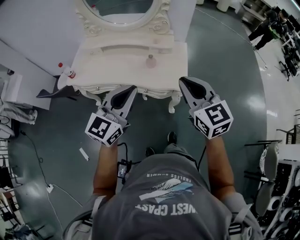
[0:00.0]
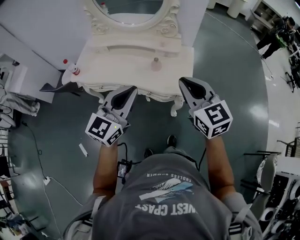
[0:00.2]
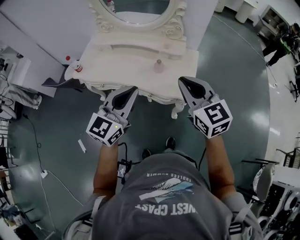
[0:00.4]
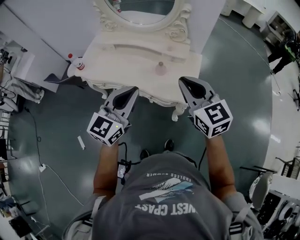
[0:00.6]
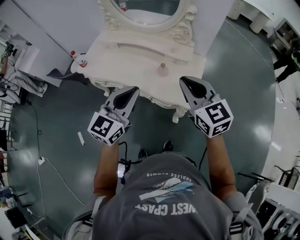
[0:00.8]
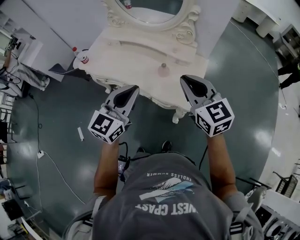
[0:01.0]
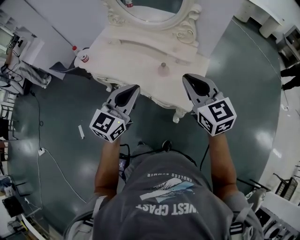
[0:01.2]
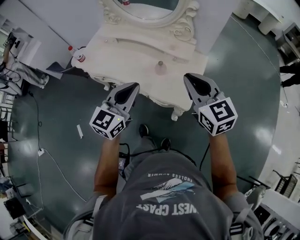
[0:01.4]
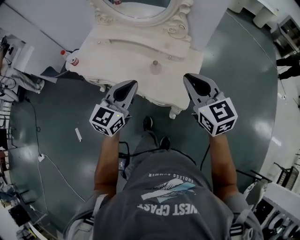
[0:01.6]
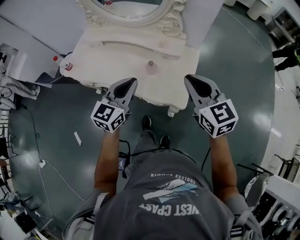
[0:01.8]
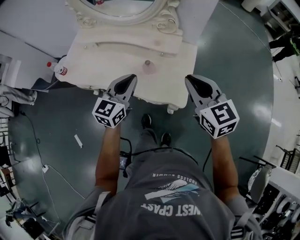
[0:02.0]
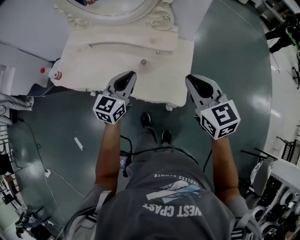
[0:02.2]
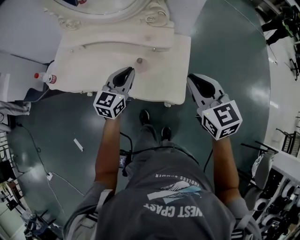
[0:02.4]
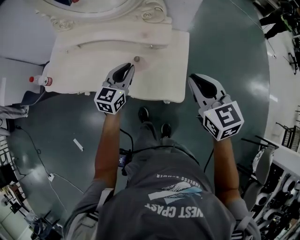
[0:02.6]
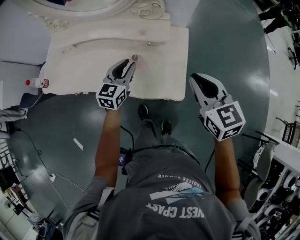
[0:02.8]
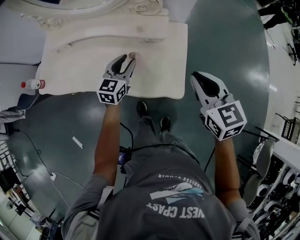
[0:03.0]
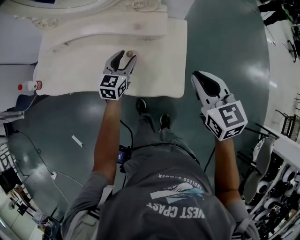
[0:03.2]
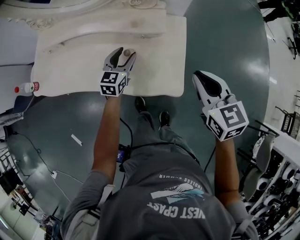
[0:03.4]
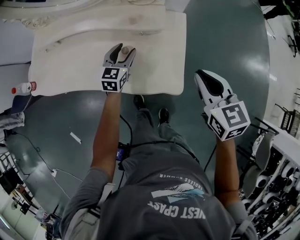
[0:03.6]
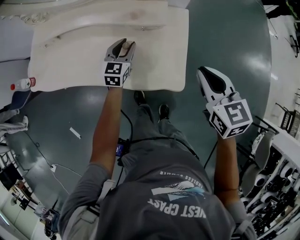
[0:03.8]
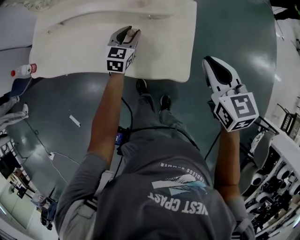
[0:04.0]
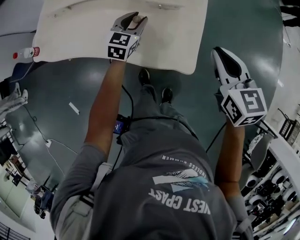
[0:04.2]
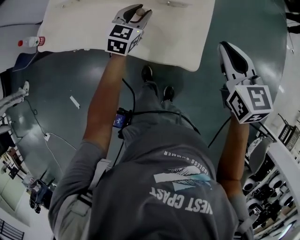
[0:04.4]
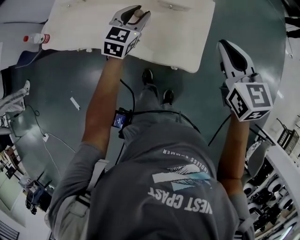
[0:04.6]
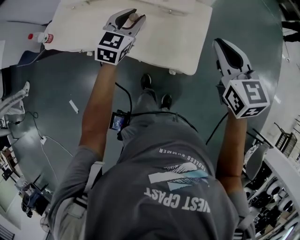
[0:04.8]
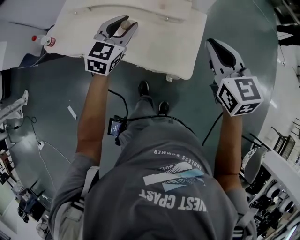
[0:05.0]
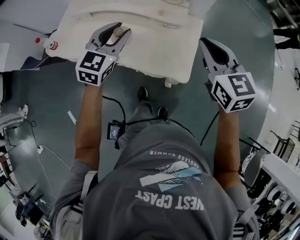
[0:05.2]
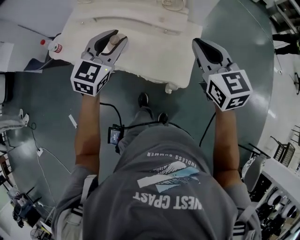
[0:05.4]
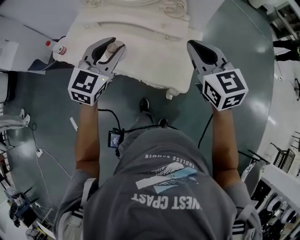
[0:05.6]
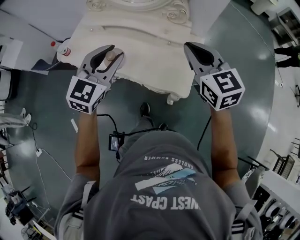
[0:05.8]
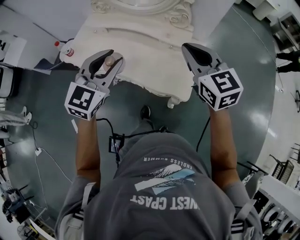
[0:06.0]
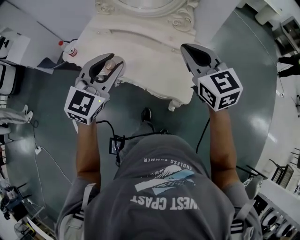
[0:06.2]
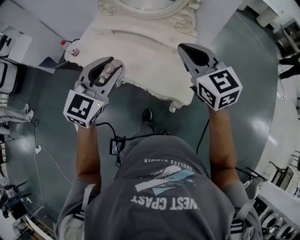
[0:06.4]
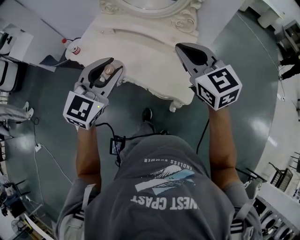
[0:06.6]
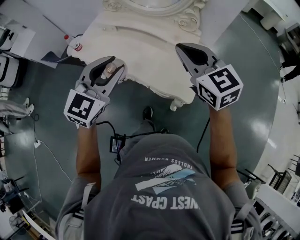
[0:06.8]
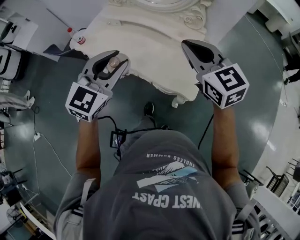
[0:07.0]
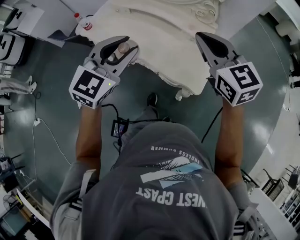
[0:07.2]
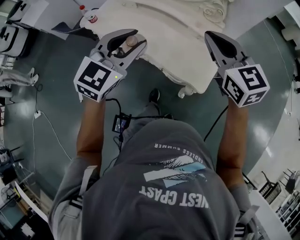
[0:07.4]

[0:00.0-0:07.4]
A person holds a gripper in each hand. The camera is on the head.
0:00.0 to 0:01.4: The left gripper moves forward and downward, roughly 10 cm. Meanwhile the right gripper is displaced forward by about 15 cm.
0:01.4 to 0:03.0: The left gripper is displaced downward and forward by about 30 cm, and opens its fingers; the right gripper moves downward and to the right, approximately 15 cm, and changes its angle by some 30 degrees.
0:04.4 to 0:06.0: The right gripper heads upward and to the left, covering approximately 15 cm, and swivels some 30 degrees. The left gripper goes some 30 cm upward and backward.
0:06.0 to 0:07.4: The grippers make only small movements.

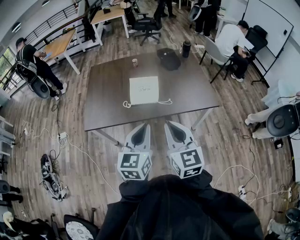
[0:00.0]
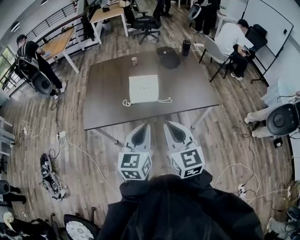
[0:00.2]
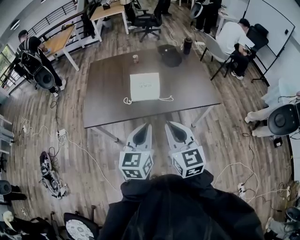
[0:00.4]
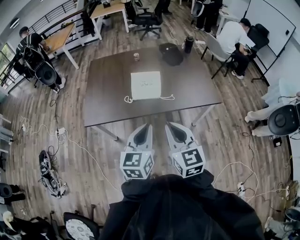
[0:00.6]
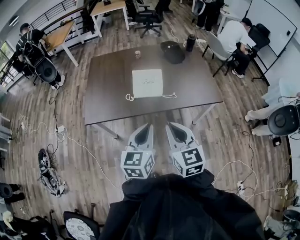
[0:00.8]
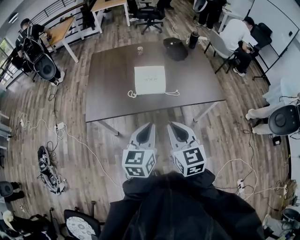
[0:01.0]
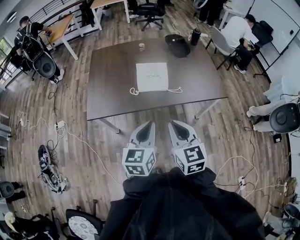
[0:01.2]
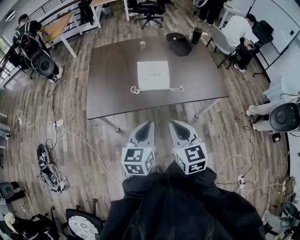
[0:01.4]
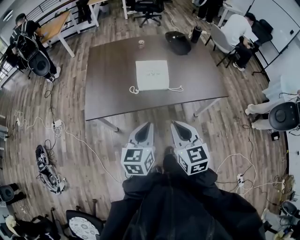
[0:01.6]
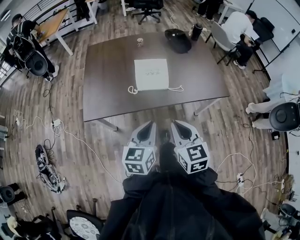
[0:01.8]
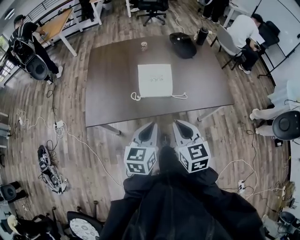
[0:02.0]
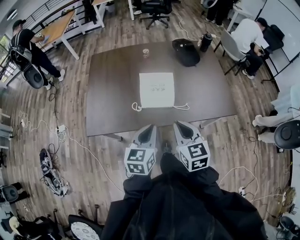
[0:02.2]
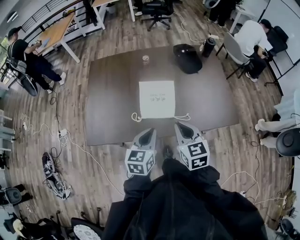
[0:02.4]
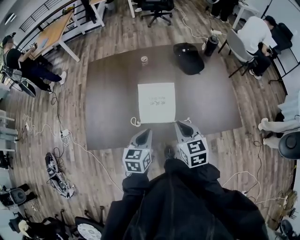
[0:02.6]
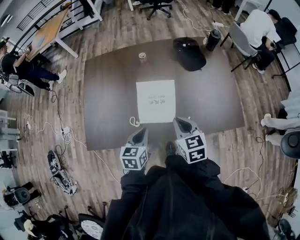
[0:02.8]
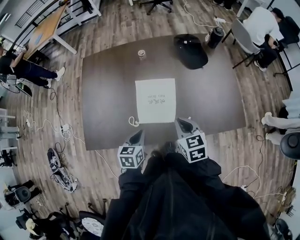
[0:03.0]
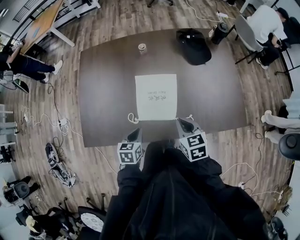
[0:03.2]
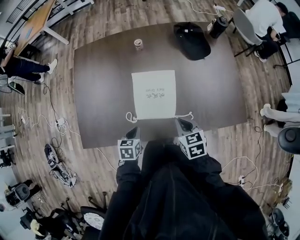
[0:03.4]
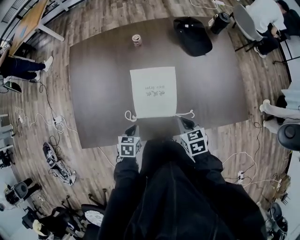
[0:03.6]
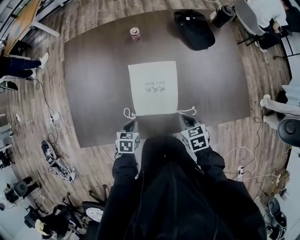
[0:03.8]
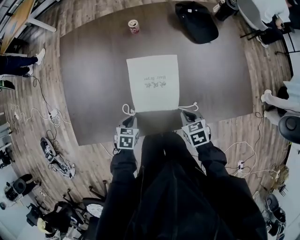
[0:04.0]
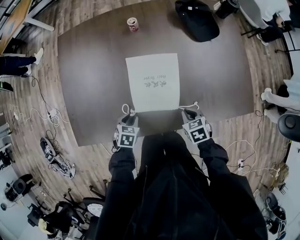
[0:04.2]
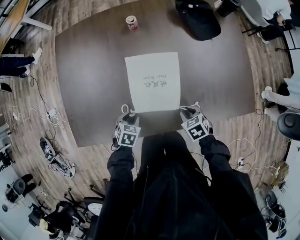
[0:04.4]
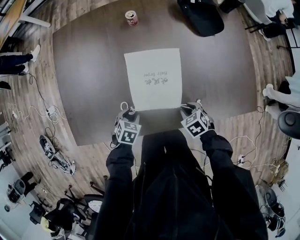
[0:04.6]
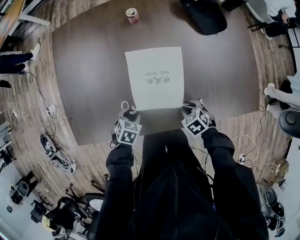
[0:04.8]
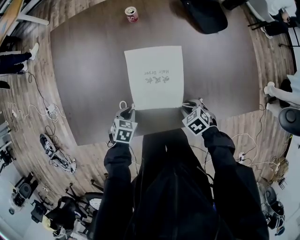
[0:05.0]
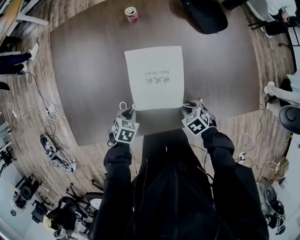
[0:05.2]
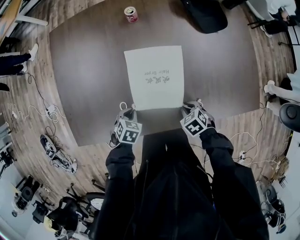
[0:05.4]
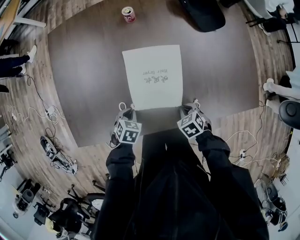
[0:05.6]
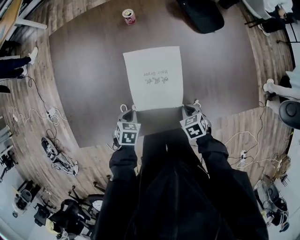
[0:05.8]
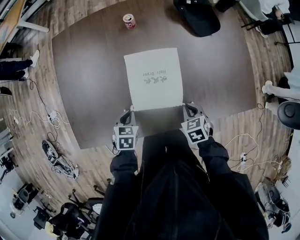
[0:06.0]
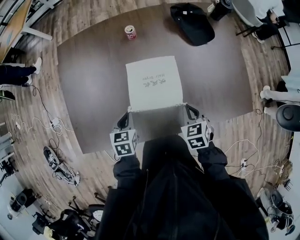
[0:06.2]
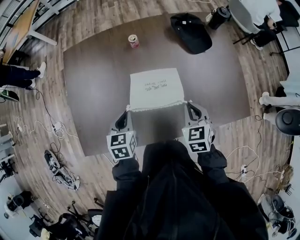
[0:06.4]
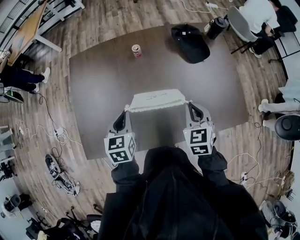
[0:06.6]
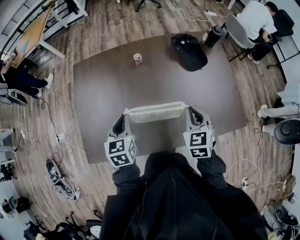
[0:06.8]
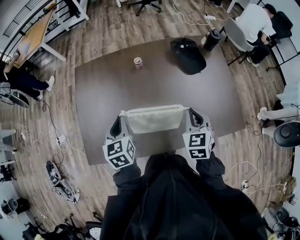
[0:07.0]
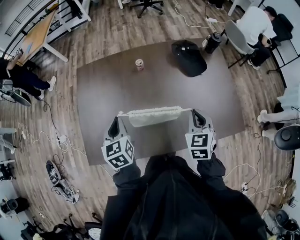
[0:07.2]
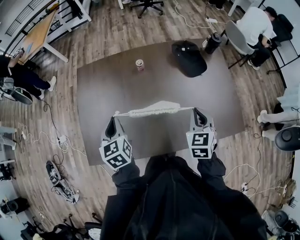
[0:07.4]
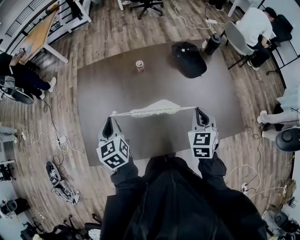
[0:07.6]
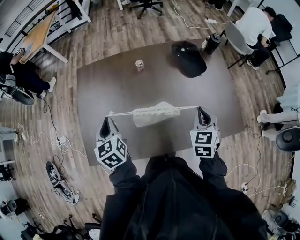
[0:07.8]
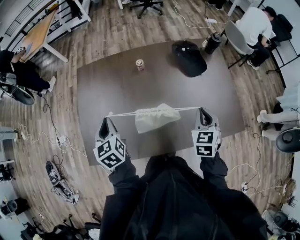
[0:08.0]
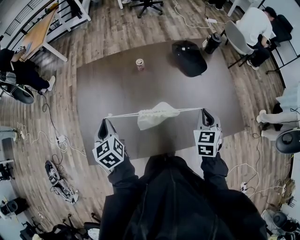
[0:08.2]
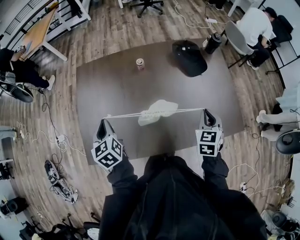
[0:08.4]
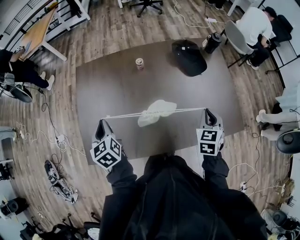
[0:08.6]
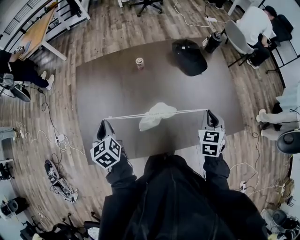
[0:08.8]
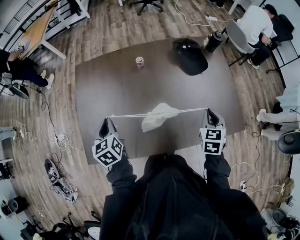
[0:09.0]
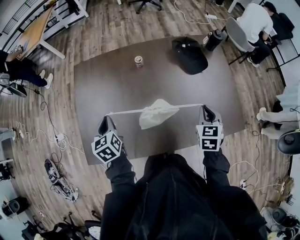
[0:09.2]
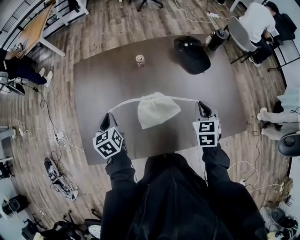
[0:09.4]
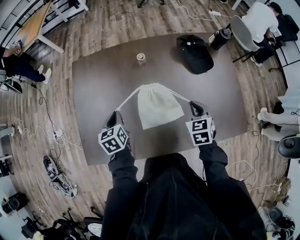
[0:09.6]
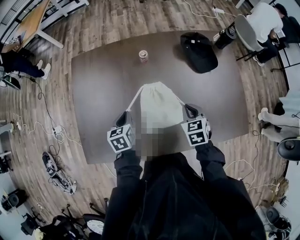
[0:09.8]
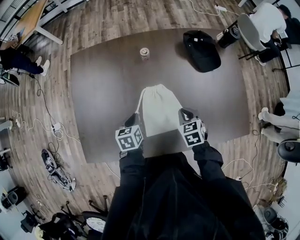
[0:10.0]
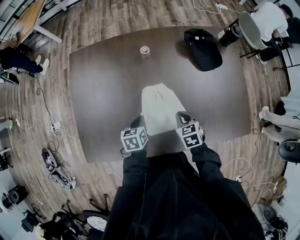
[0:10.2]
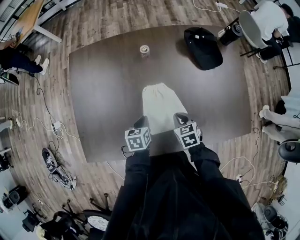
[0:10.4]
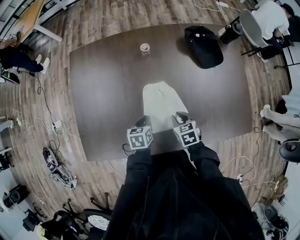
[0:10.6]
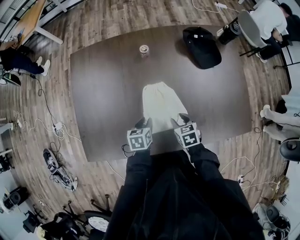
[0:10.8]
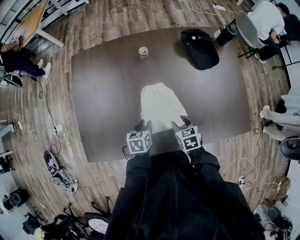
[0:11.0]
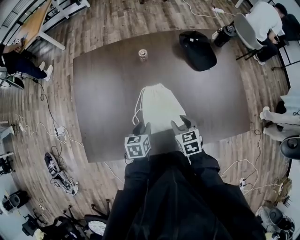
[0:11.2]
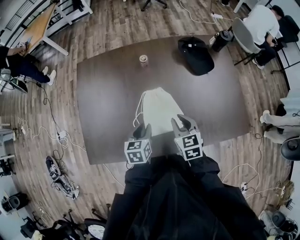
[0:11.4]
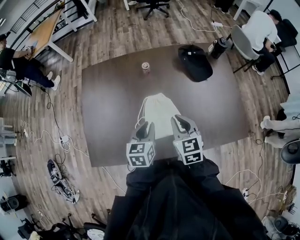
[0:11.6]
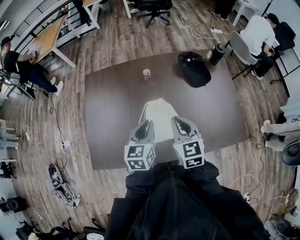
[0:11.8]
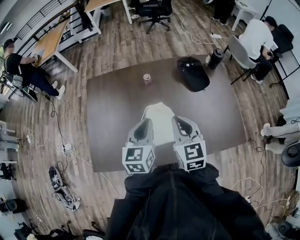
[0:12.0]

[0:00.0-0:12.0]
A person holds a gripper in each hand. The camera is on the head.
0:00.0 to 0:01.6: The grippers both shift to the left and downward by some 15 cm.
0:01.6 to 0:03.0: The left gripper goes about 35 cm forward and downward, and turns by roughly 20 degrees; the right gripper shifts roughly 35 cm forward.
0:03.0 to 0:04.4: Both grippers travel together downward, about 20 cm. The left gripper swivels roughly 30 degrees, and opens up, while the right gripper angles its fingers downward, by some 30 degrees, and opens.
0:04.4 to 0:06.0: The left gripper ends up approximately 5 cm from where it was, and closes up.
0:06.0 to 0:07.6: Both grippers travel together upward, approximately 25 cm. The right gripper changes its angle by about 30 degrees. The left gripper points its fingers about 30 degrees further upward.
0:07.6 to 0:09.0: The right gripper goes about 5 cm to the right, while the left gripper shifts by some 5 cm.
0:09.0 to 0:10.4: The right gripper goes about 25 cm downward and to the left, and turns by roughly 30 degrees, while the left gripper heads downward and to the right, covering about 25 cm, and rotates some 30 degrees.
0:10.4 to 0:12.0: The two grippers go approximately 30 cm upward. The left gripper tips its fingers upward by roughly 30 degrees, and opens, then closes once more; the right gripper angles its fingers upward, by roughly 40 degrees, and opens and closes again.

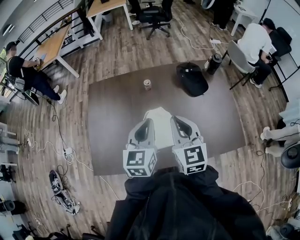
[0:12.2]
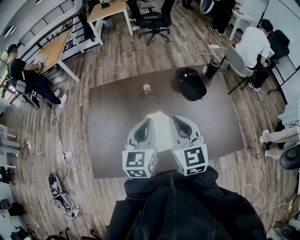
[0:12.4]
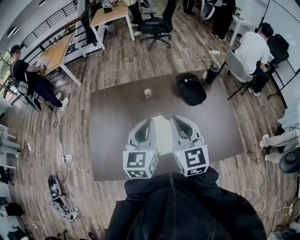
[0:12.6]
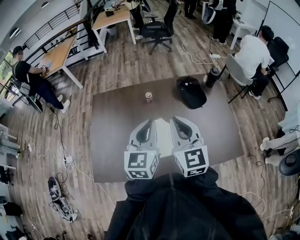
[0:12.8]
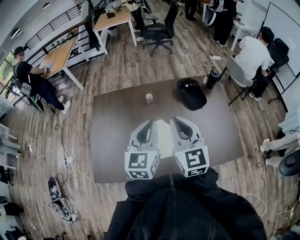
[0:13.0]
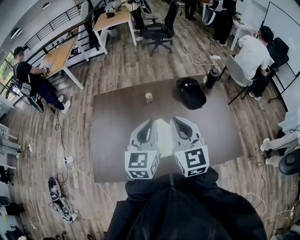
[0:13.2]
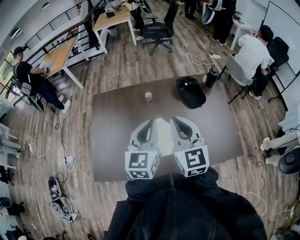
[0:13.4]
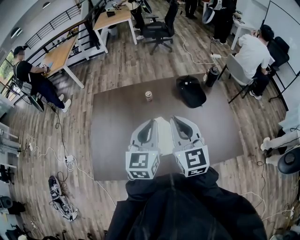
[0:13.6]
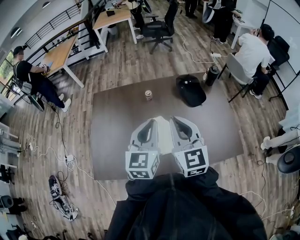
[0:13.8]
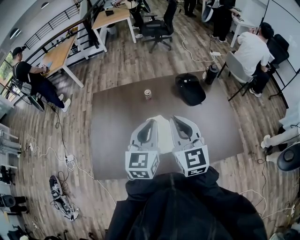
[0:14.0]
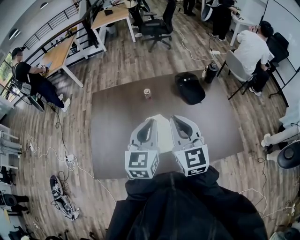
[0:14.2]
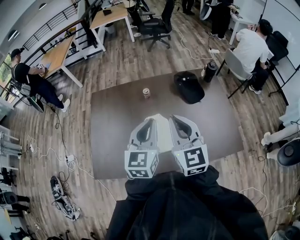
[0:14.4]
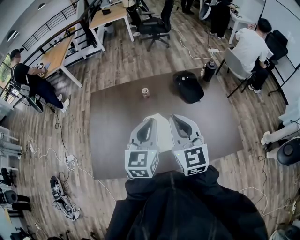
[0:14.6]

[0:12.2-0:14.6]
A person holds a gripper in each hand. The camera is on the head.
0:12.2 to 0:13.4: The two grippers go some 5 cm upward.
0:13.4 to 0:14.6: The grippers make only small movements.

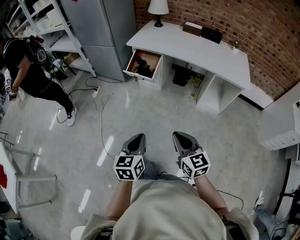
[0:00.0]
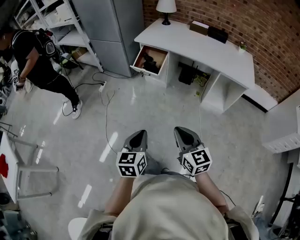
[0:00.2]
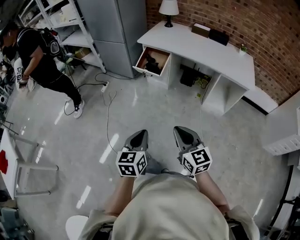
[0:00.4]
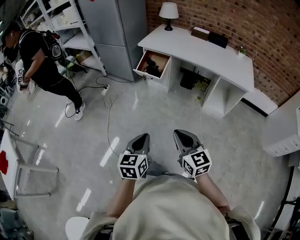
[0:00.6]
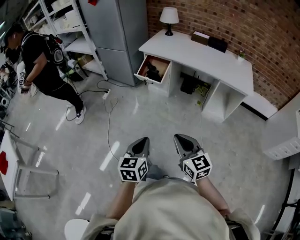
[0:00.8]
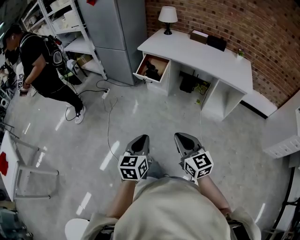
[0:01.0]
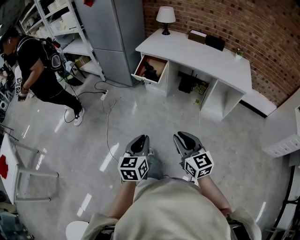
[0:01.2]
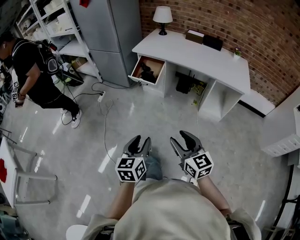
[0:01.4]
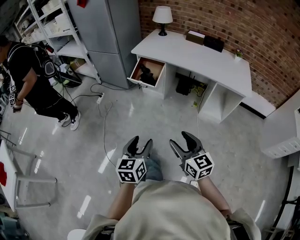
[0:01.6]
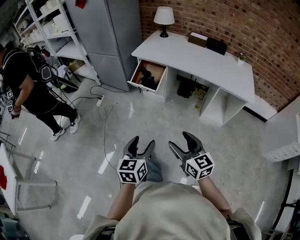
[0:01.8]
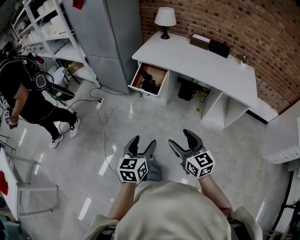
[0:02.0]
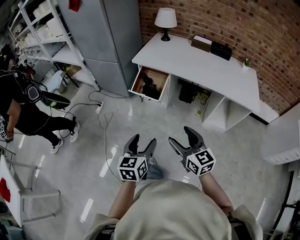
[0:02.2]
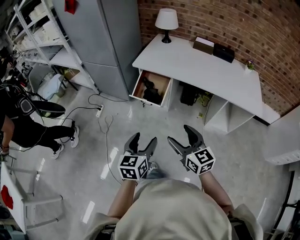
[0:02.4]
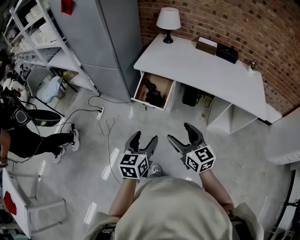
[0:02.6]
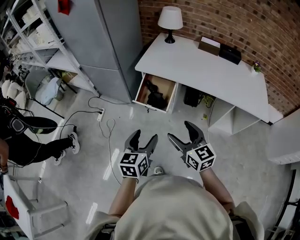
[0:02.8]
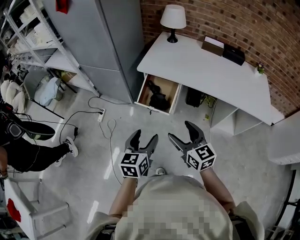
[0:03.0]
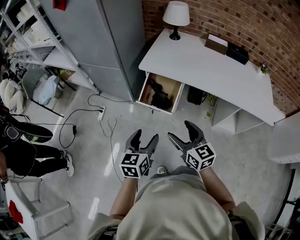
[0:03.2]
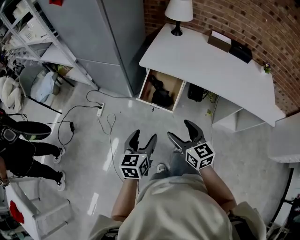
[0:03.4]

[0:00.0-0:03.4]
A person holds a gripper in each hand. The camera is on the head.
0:00.0 to 0:01.6: The right gripper opens its fingers. Meanwhile the left gripper opens up.
0:01.6 to 0:03.4: Both grippers are carried forward, some 40 cm.
